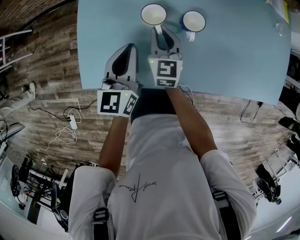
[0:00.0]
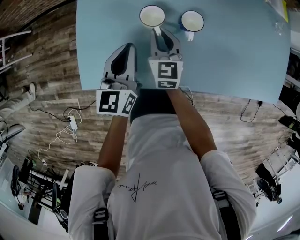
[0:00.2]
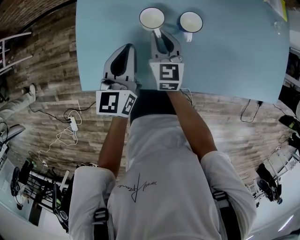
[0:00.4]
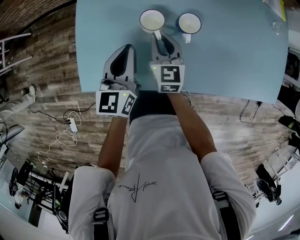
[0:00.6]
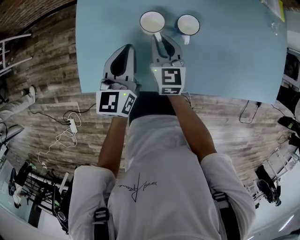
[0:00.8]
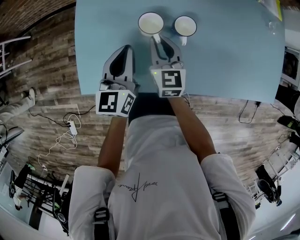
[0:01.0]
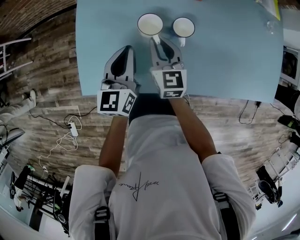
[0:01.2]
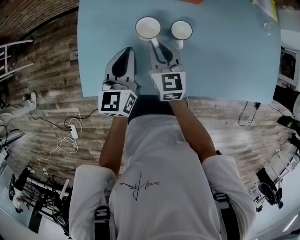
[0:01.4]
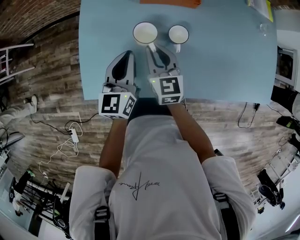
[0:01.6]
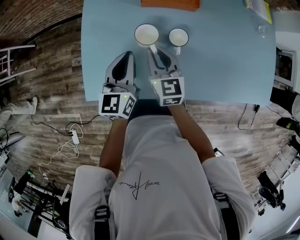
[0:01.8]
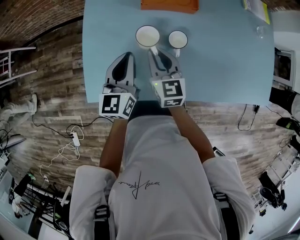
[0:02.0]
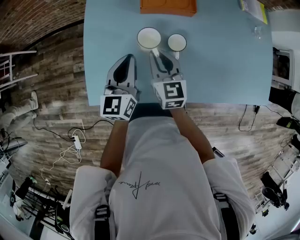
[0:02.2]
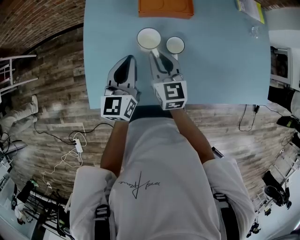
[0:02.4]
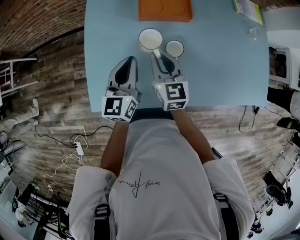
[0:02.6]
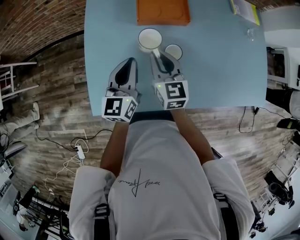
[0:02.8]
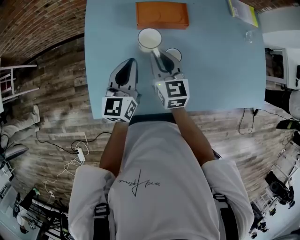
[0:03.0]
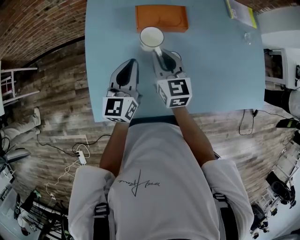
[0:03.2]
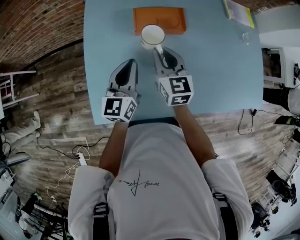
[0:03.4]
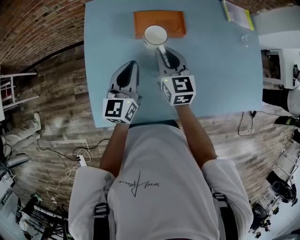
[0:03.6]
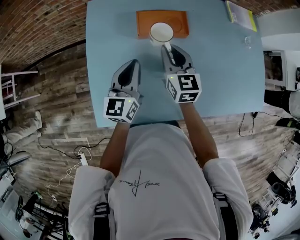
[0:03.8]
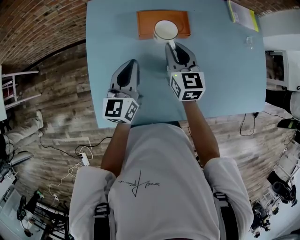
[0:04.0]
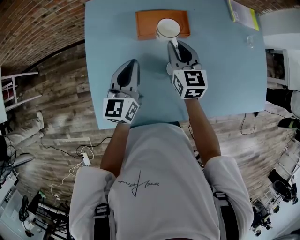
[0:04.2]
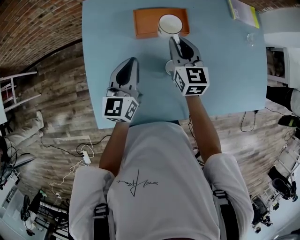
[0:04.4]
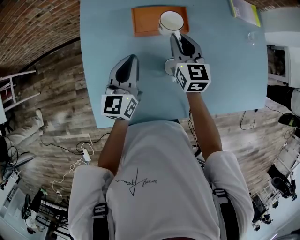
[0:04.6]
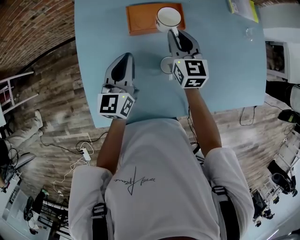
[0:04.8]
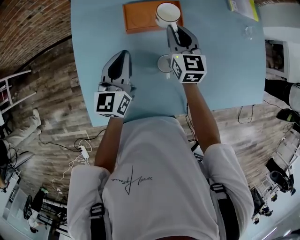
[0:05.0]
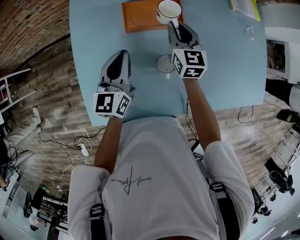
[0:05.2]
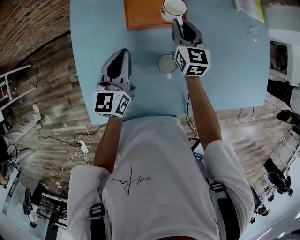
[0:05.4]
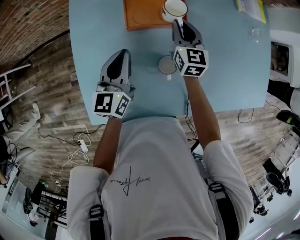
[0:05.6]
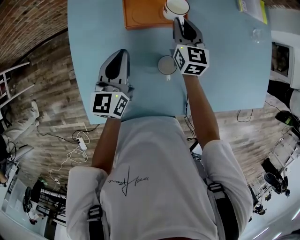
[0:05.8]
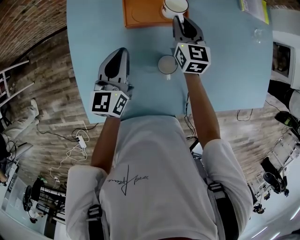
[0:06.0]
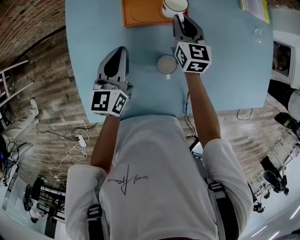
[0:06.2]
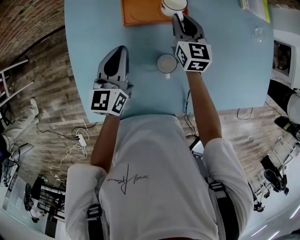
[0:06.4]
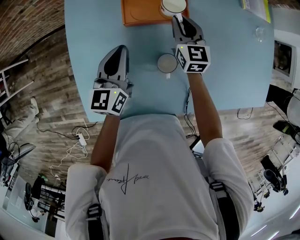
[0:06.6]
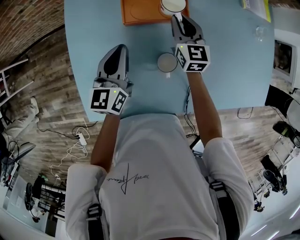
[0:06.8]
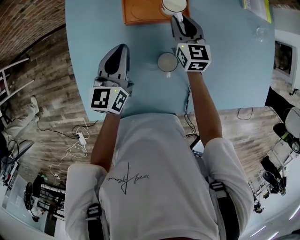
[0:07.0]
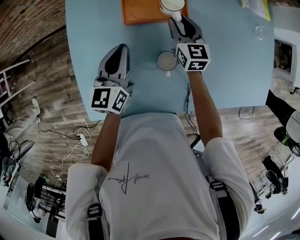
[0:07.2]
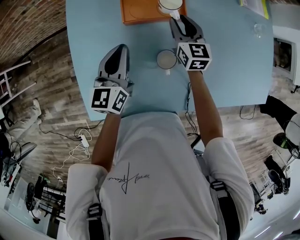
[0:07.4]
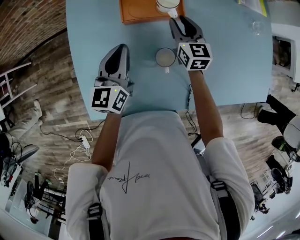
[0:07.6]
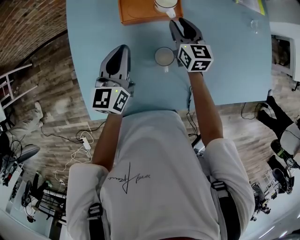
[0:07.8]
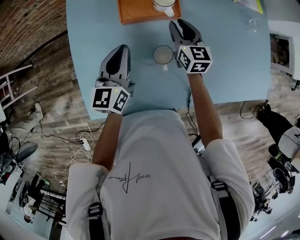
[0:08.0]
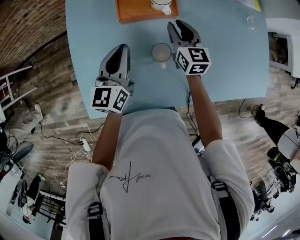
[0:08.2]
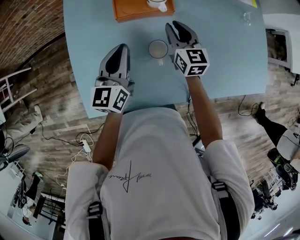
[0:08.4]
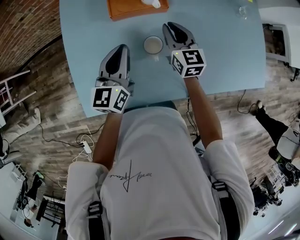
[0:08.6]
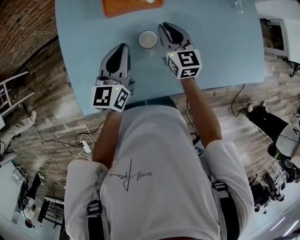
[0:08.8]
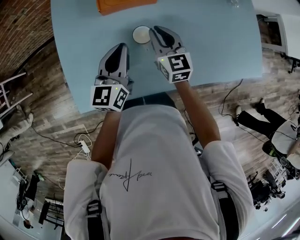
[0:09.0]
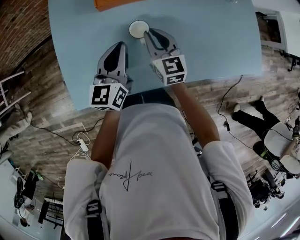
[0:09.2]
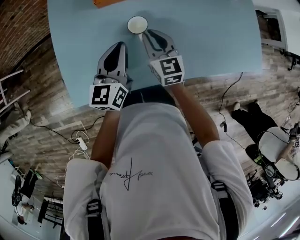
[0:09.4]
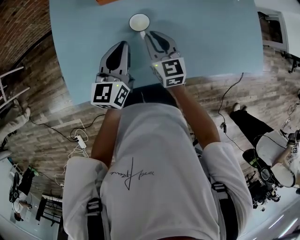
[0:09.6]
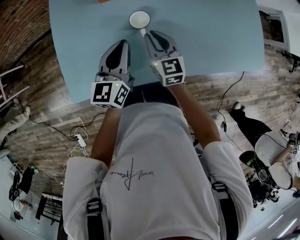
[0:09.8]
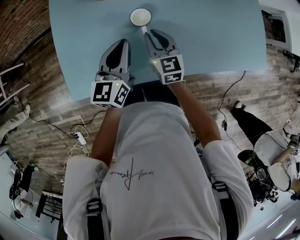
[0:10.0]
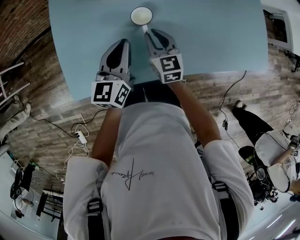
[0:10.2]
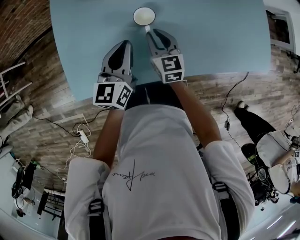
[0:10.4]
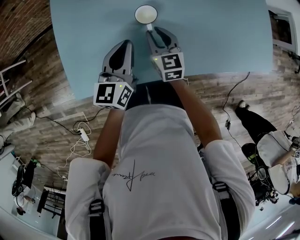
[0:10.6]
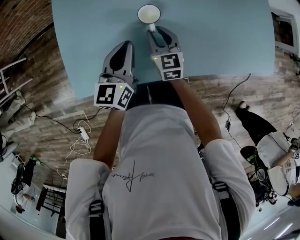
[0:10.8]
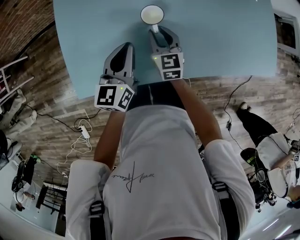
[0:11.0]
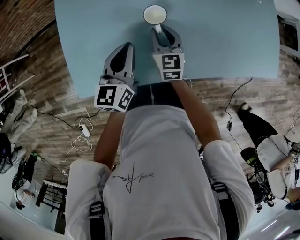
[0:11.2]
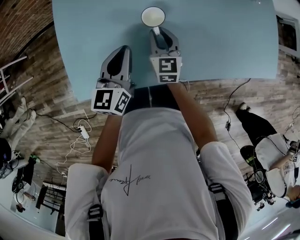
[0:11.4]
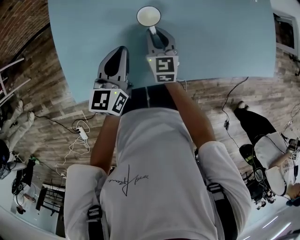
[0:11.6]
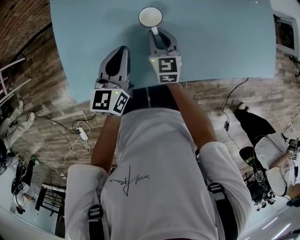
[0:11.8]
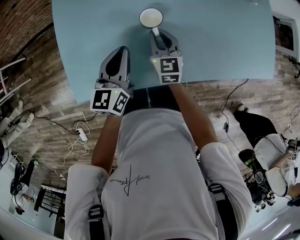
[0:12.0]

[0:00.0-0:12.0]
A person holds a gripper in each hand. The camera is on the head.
0.0 to 1.6 s: The right gripper travels upward by about 5 cm.
1.6 to 3.0 s: The right gripper travels upward and forward by approximately 10 cm, while the left gripper goes some 5 cm forward.
3.0 to 4.4 s: The right gripper travels forward and to the right by about 10 cm. Meanwhile the left gripper goes roughly 5 cm forward.
4.4 to 6.0 s: The right gripper moves forward and downward, about 10 cm.
6.0 to 7.6 s: The grippers make only small movements.
7.6 to 9.0 s: The right gripper heads backward, covering roughly 15 cm. Meanwhile the left gripper travels backward and to the right by some 10 cm.
9.0 to 10.4 s: The right gripper travels downward and backward by about 10 cm; the left gripper shifts by roughly 5 cm.
10.4 to 12.0 s: The grippers make only small movements.

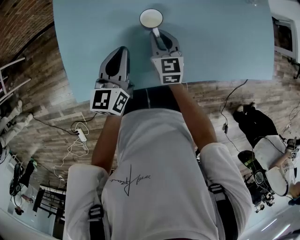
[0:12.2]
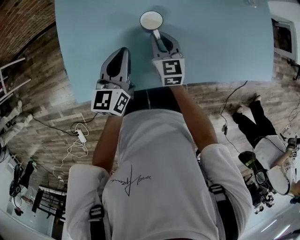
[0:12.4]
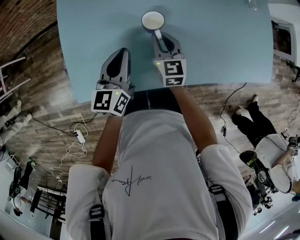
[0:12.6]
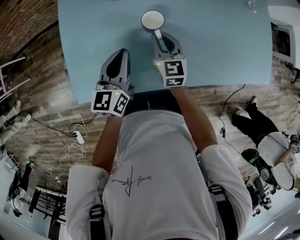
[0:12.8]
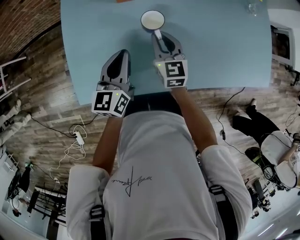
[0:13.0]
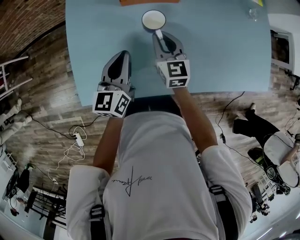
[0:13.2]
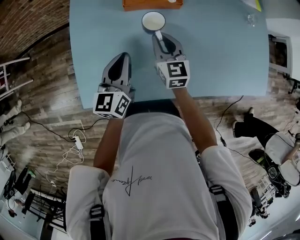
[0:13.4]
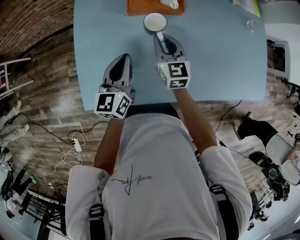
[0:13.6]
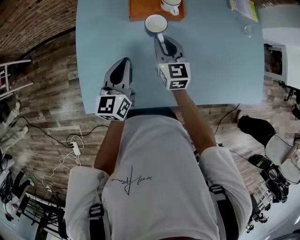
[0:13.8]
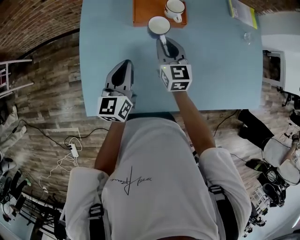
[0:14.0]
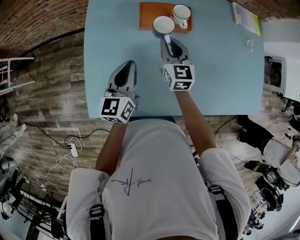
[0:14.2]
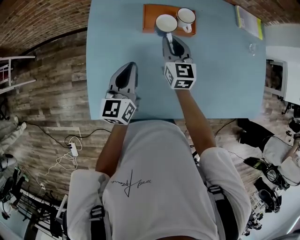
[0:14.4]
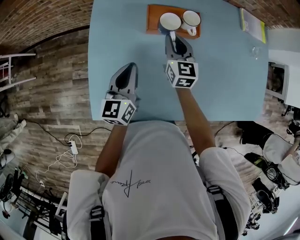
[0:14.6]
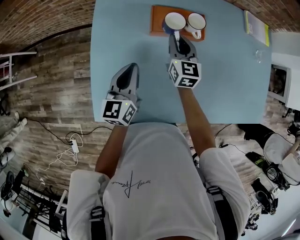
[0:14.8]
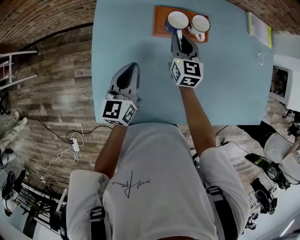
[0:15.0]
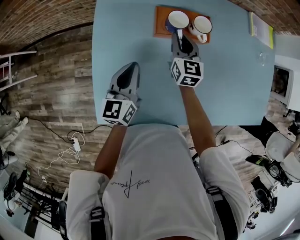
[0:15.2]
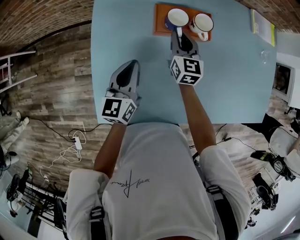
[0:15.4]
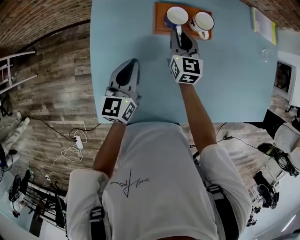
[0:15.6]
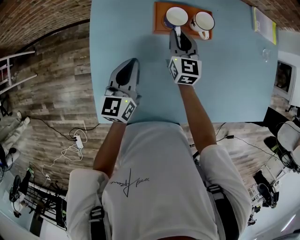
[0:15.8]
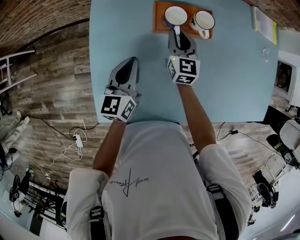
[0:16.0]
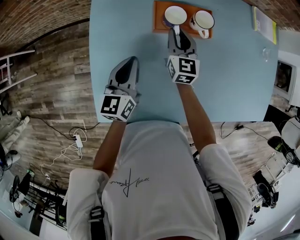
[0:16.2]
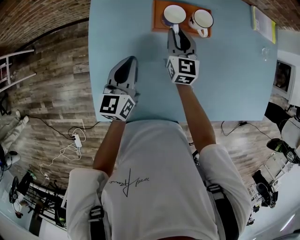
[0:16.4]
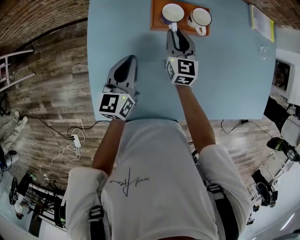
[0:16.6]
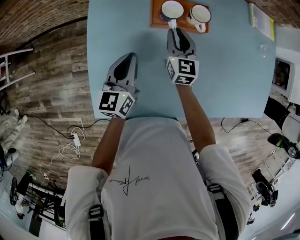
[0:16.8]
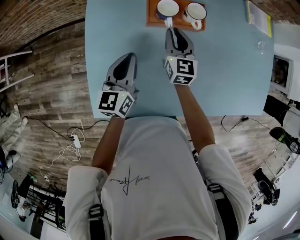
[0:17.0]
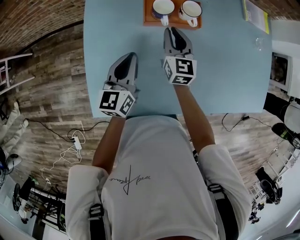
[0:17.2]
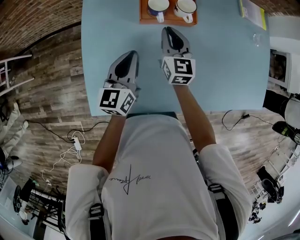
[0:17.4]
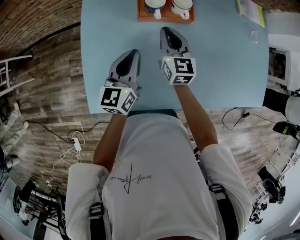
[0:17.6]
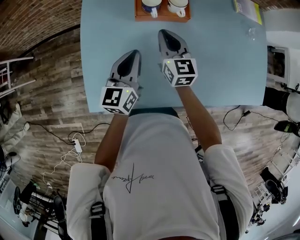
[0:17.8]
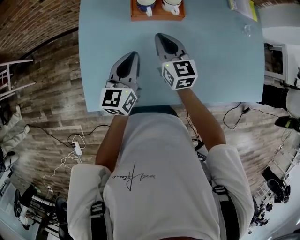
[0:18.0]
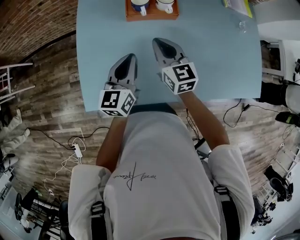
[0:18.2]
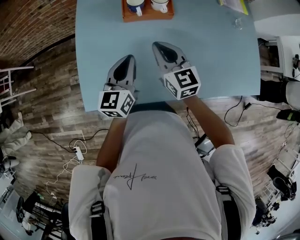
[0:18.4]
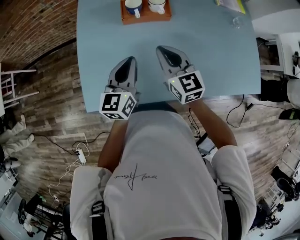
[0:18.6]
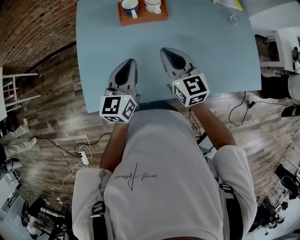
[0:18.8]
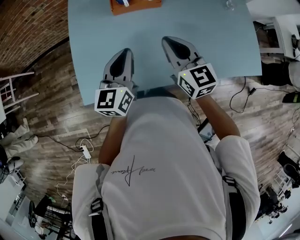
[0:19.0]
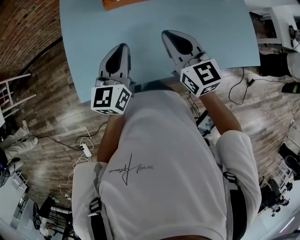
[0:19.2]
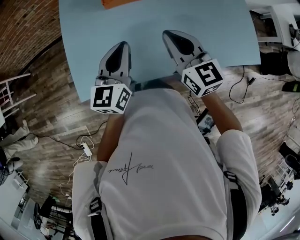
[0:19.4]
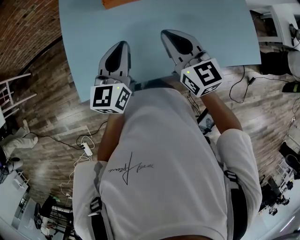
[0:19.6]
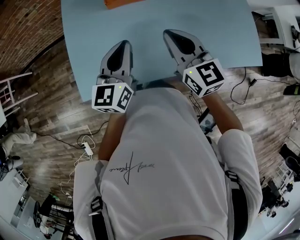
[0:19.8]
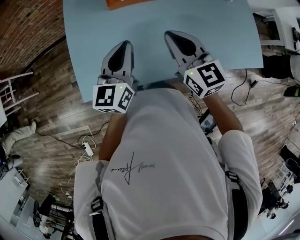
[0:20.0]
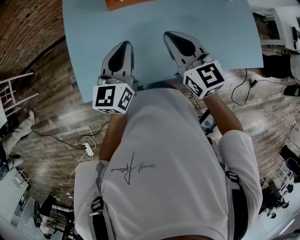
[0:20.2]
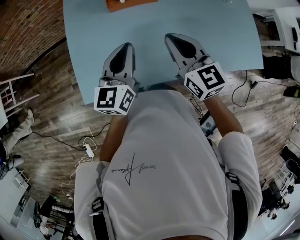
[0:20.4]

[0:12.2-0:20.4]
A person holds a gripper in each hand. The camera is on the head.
12.2 to 13.8 s: The right gripper travels upward and forward by roughly 10 cm. The left gripper shifts by roughly 5 cm.
13.8 to 15.4 s: The left gripper shifts roughly 10 cm forward and to the left; the right gripper goes approximately 10 cm forward.
15.4 to 17.2 s: The right gripper changes place by some 5 cm.
17.2 to 18.8 s: The right gripper heads backward and upward, covering roughly 20 cm, while the left gripper goes roughly 15 cm backward, to the right and upward.
18.8 to 20.4 s: The right gripper changes place by roughly 5 cm.

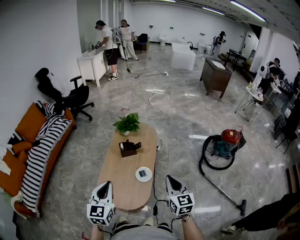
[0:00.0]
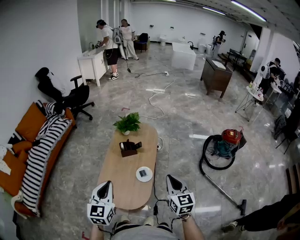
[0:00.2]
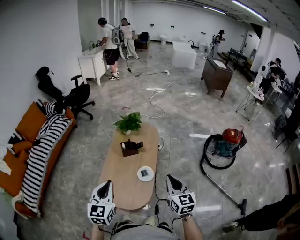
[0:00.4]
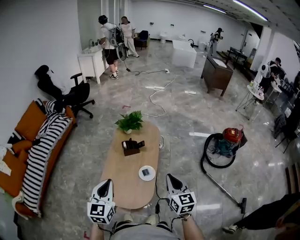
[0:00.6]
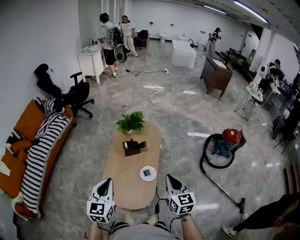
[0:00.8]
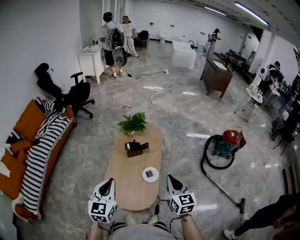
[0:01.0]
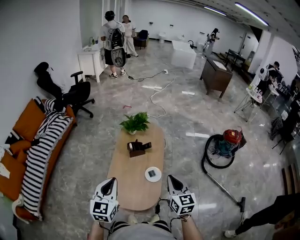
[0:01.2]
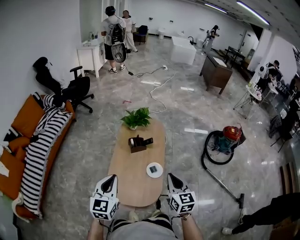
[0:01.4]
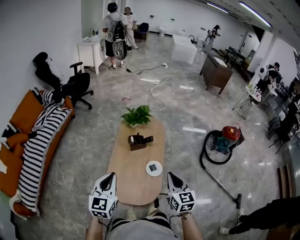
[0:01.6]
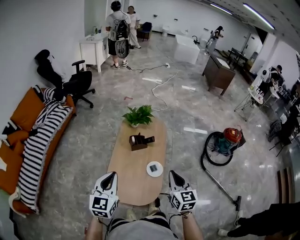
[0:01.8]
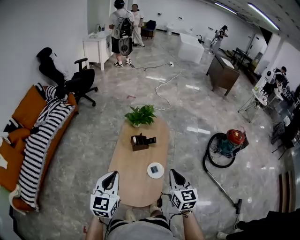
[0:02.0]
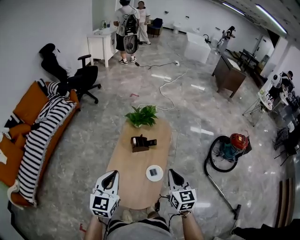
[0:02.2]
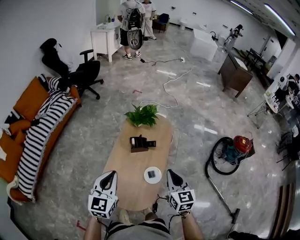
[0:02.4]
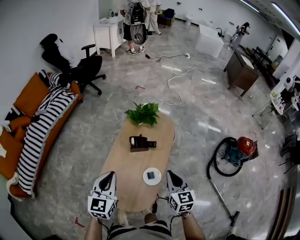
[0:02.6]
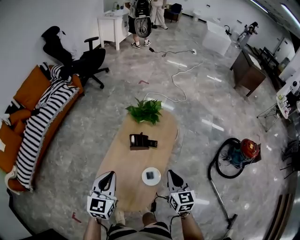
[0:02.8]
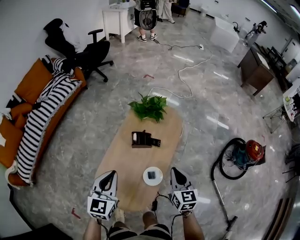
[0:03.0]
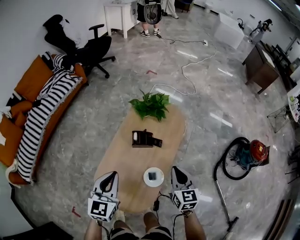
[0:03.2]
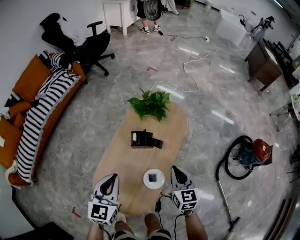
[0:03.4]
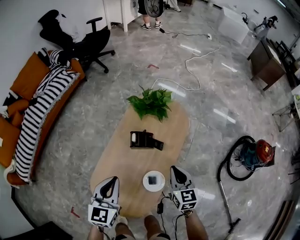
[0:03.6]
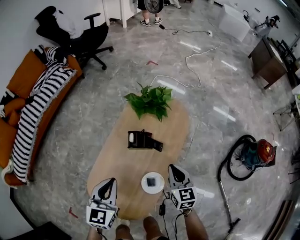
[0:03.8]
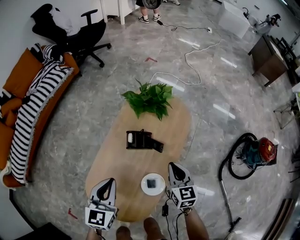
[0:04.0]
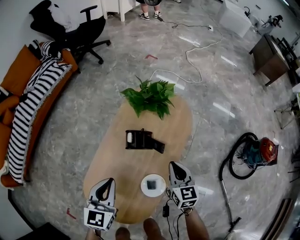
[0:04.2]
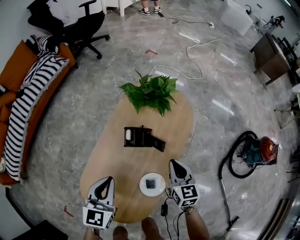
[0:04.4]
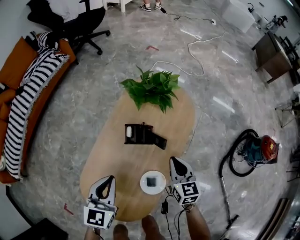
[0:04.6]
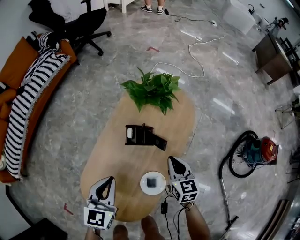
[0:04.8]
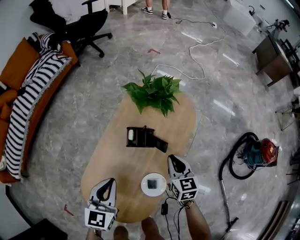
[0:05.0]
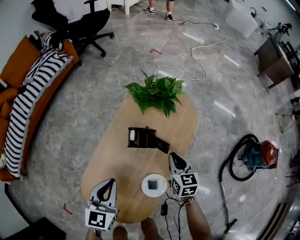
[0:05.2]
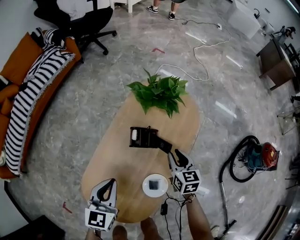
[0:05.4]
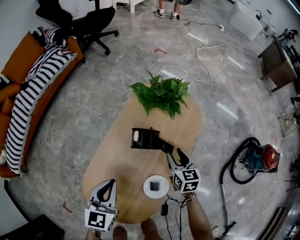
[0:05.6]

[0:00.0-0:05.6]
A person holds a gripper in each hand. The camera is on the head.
0.0 to 1.4 s: Both grippers travel together to the left, some 15 cm.
1.4 to 2.8 s: The right gripper goes approximately 20 cm forward and downward; the left gripper goes approximately 20 cm forward, downward and to the right.
2.8 to 4.2 s: Both grippers travel together downward and forward, approximately 25 cm.
4.2 to 5.6 s: The right gripper shifts roughly 10 cm downward and forward, and opens.
